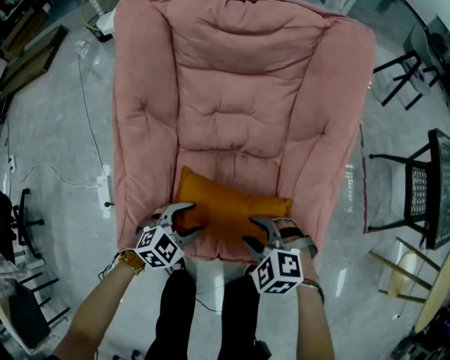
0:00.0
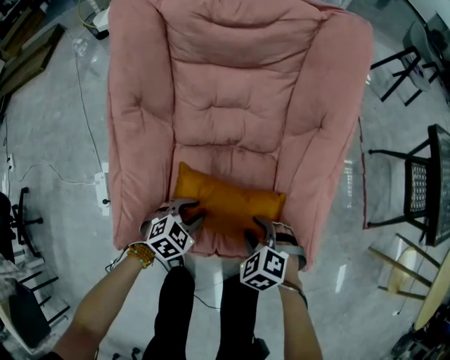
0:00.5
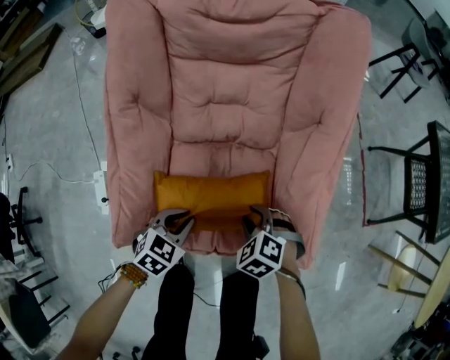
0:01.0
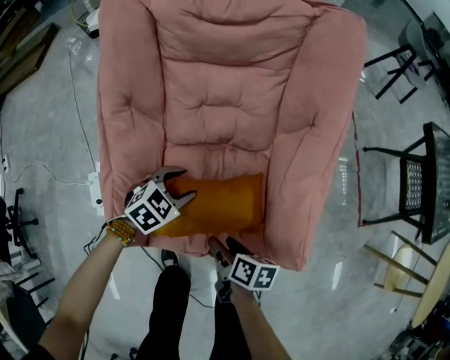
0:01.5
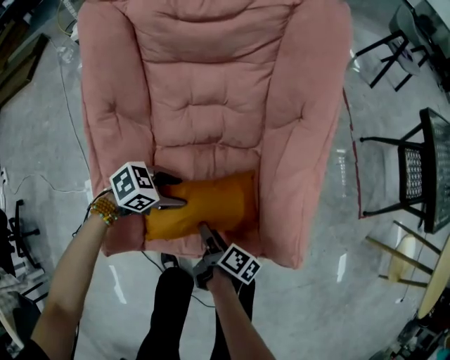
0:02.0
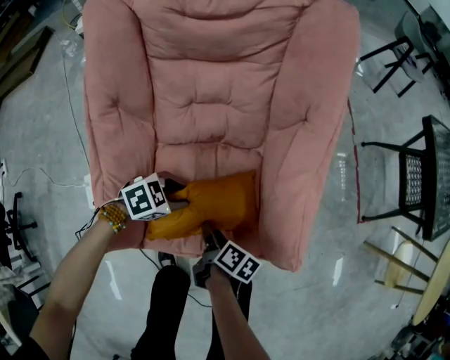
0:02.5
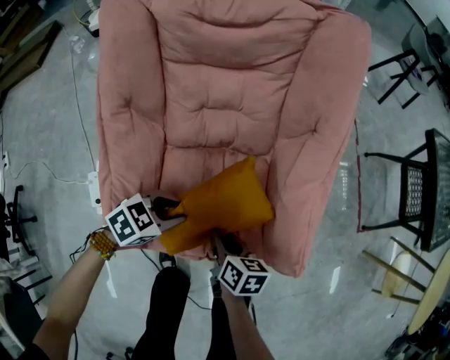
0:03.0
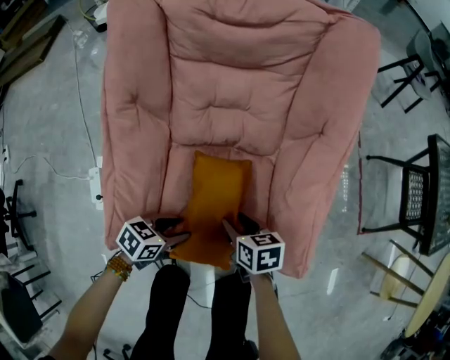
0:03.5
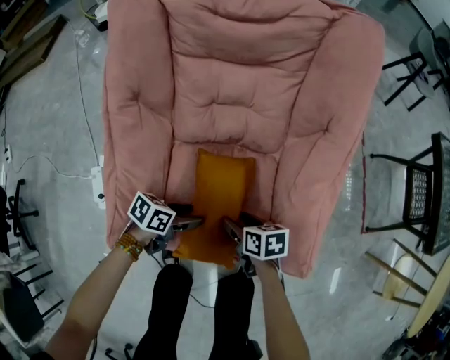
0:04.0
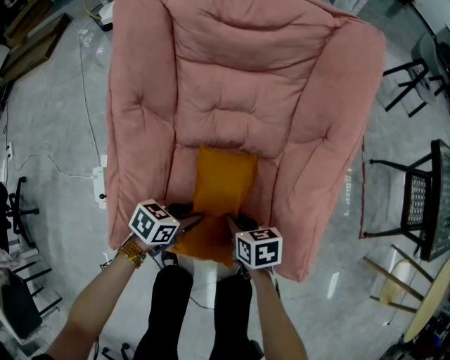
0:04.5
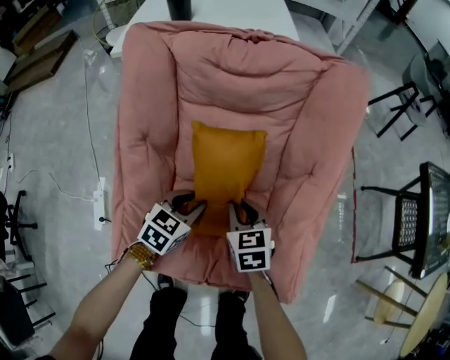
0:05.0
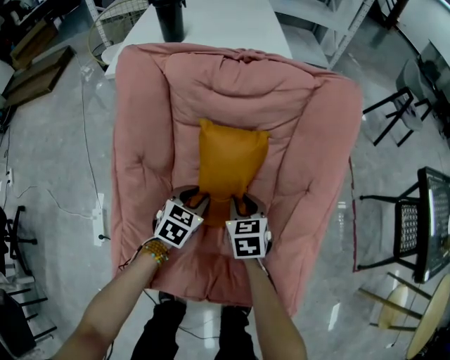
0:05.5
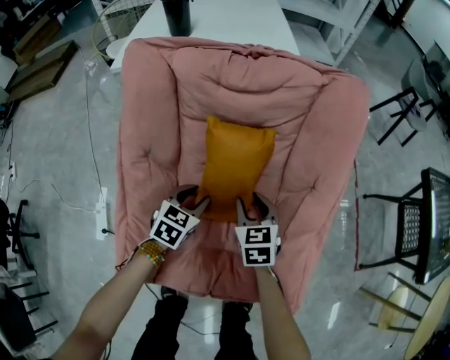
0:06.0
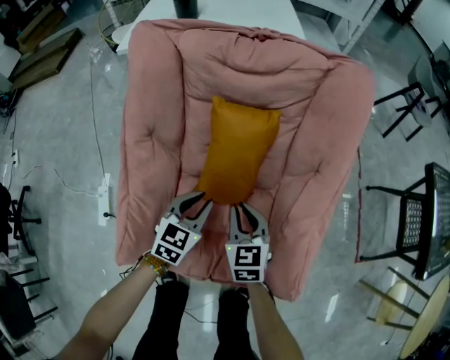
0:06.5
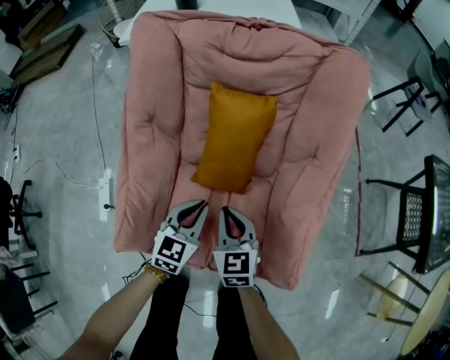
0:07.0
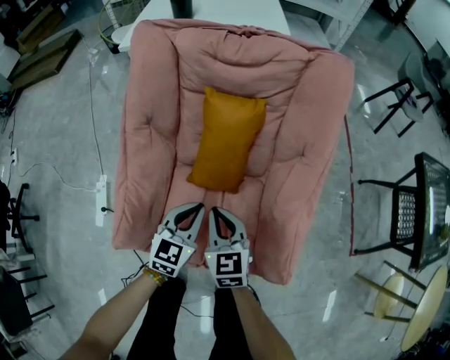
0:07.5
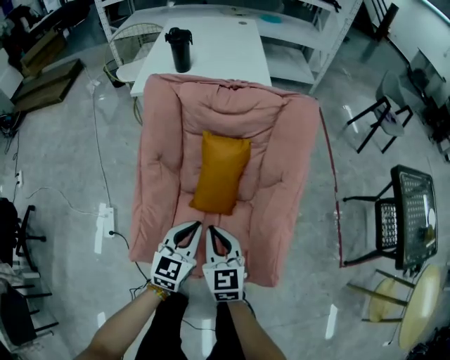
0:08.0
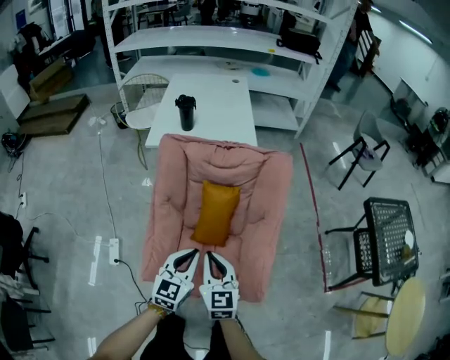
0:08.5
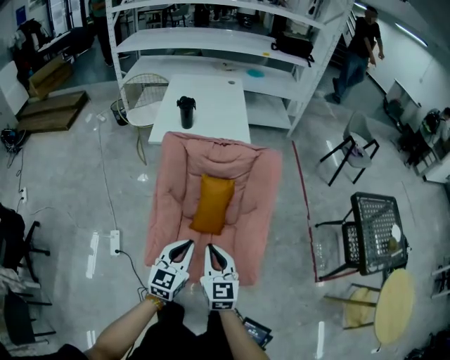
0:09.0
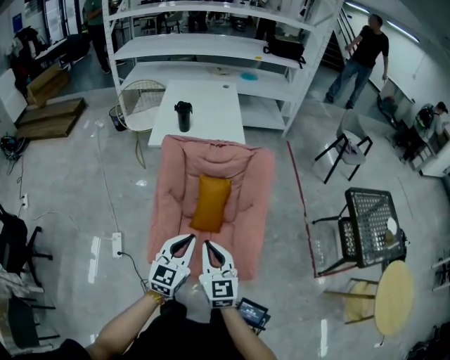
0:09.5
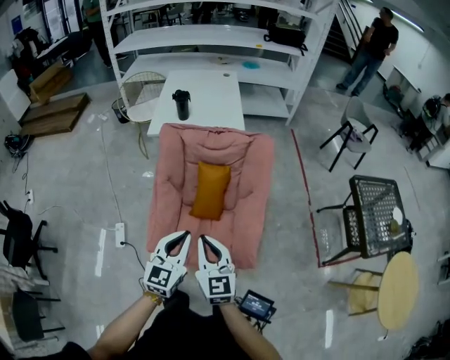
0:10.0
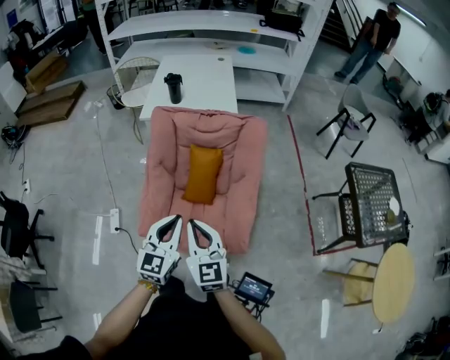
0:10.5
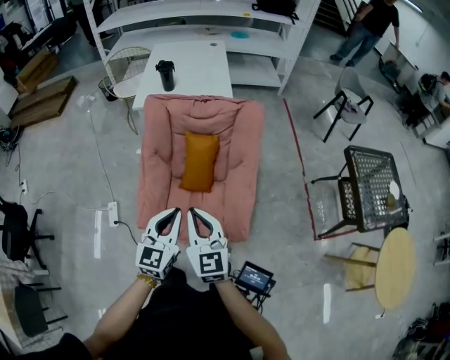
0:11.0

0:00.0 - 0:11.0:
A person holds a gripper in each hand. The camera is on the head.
0:00.0 - 0:02.0: The left gripper changes place by about 5 cm, turns by some 30 degrees, and closes and opens again; the right gripper is displaced downward by roughly 10 cm, and rotates around the line of its fingers by about 130 degrees, clockwise from behind.
0:02.0 - 0:03.5: The left gripper ends up some 10 cm from where it was, and changes its angle by approximately 30 degrees, while the right gripper changes place by approximately 5 cm, rolls counterclockwise, seen from behind, by some 60 degrees, and closes up.
0:03.5 - 0:05.5: The left gripper ends up roughly 30 cm from where it was, and changes its angle by some 40 degrees. The right gripper shifts by approximately 25 cm, and turns by approximately 30 degrees.
0:05.5 - 0:07.5: Both grippers move backward and upward, some 20 cm. The left gripper swivels some 20 degrees, and closes its fingers.
0:07.5 - 0:09.0: Both grippers move upward, some 40 cm.
0:09.0 - 0:11.0: Both grippers travel together backward, about 5 cm.

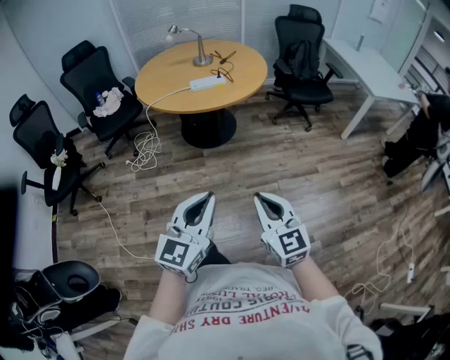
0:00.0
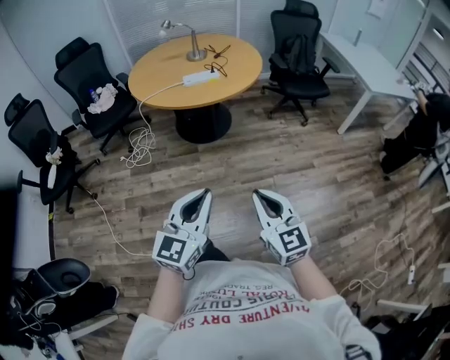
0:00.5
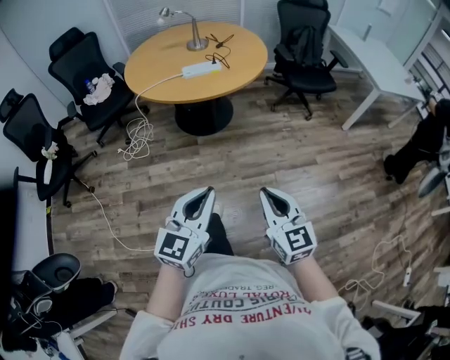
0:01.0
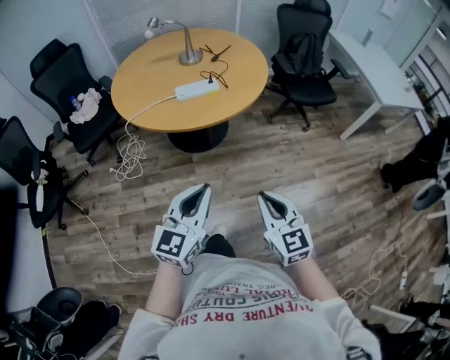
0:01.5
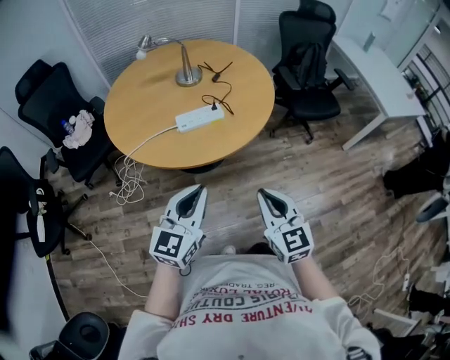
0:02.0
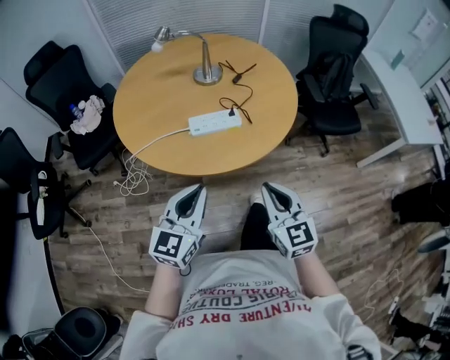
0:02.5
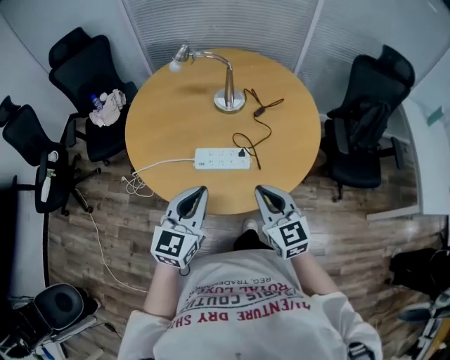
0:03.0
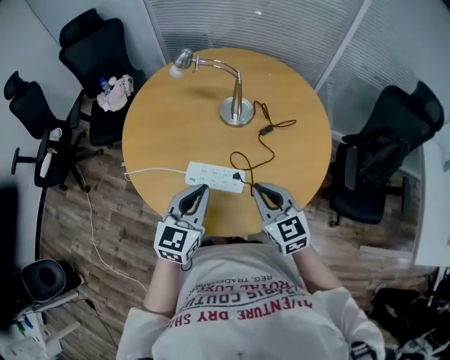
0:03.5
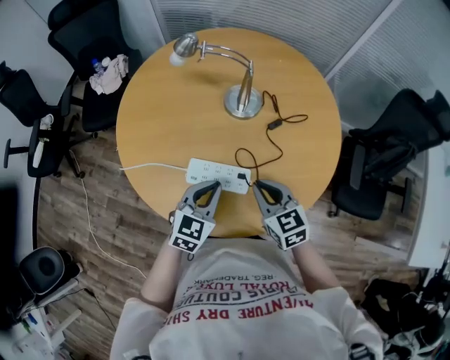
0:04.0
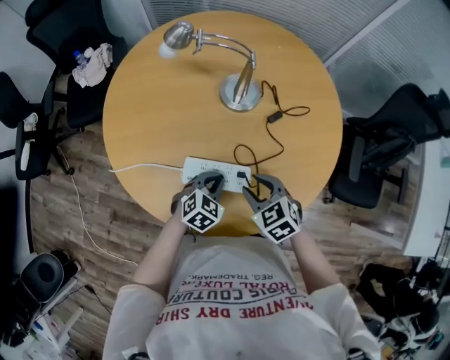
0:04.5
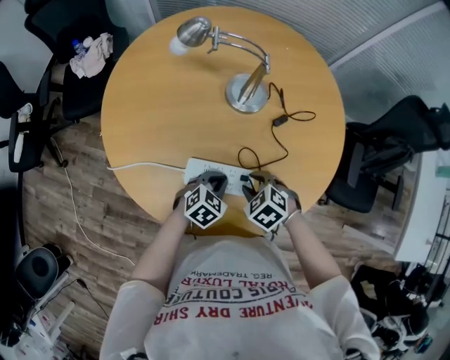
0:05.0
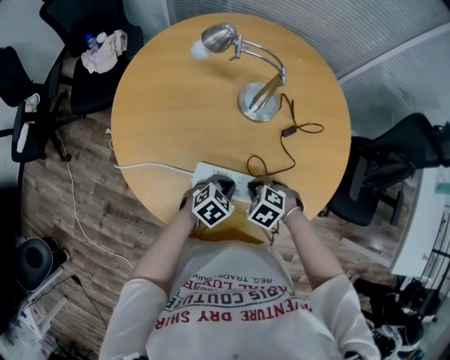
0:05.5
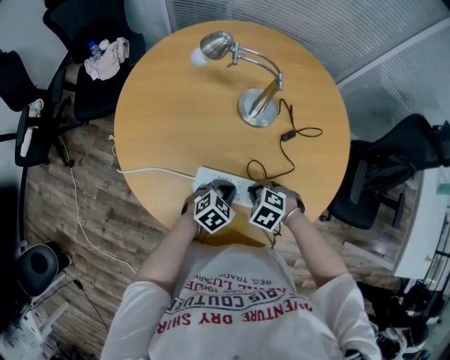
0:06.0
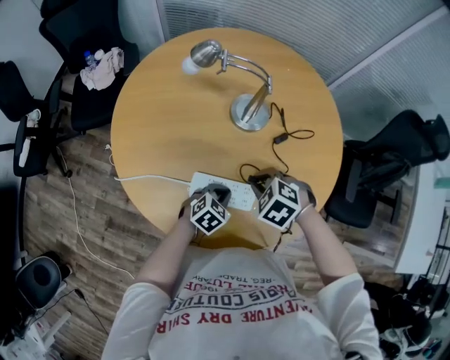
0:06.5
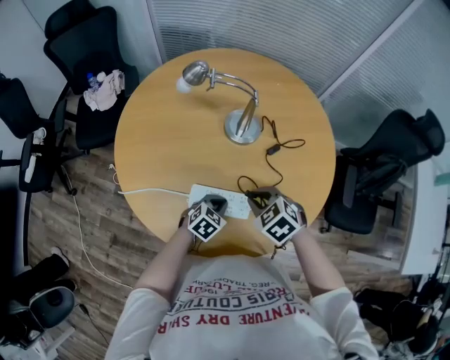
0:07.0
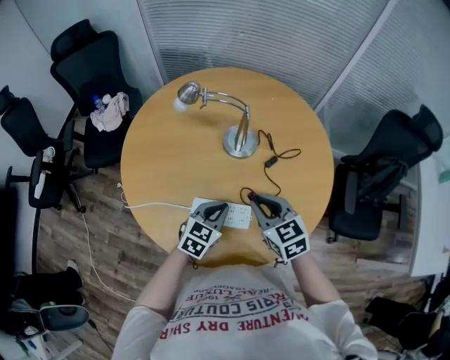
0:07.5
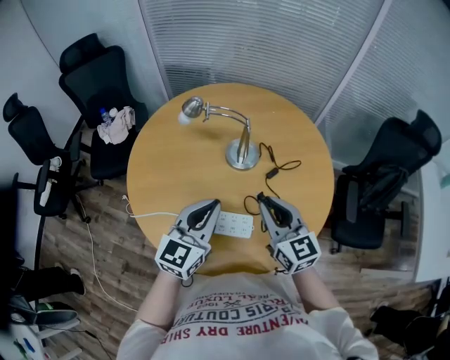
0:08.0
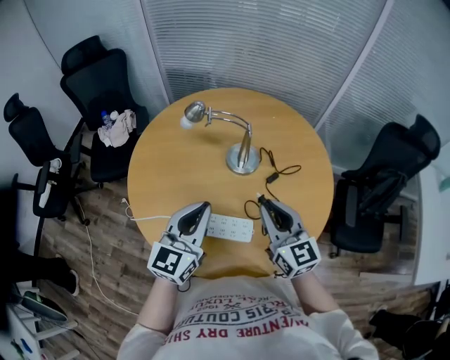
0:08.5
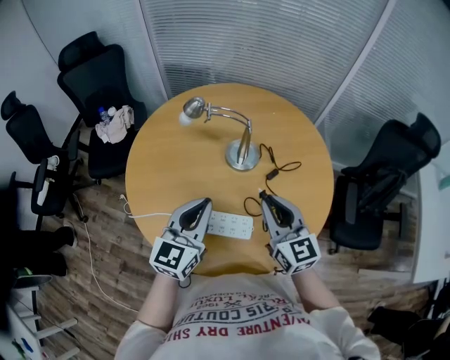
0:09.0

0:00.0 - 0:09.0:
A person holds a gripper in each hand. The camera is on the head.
0:00.0 - 0:02.0: Both grippers travel together forward, about 40 cm.
0:02.0 - 0:04.5: The left gripper moves some 50 cm, and points its fingers about 40 degrees further downward, while the right gripper ends up approximately 50 cm from where it was, tips its fingers downward by some 40 degrees, and opens.
0:04.5 - 0:07.0: The right gripper travels downward and back again, approximately 10 cm each way, and closes its fingers.
0:07.0 - 0:09.0: The left gripper moves upward, about 30 cm, and tips its fingers upward by approximately 40 degrees. Meanwhile the right gripper shifts about 15 cm upward, and tips its fingers upward by about 50 degrees.

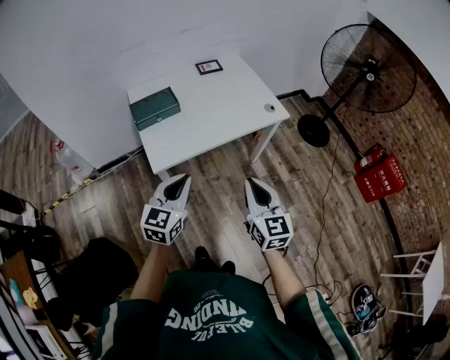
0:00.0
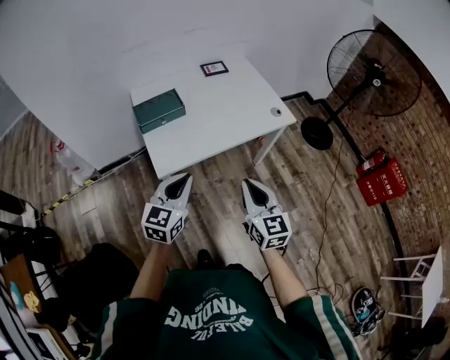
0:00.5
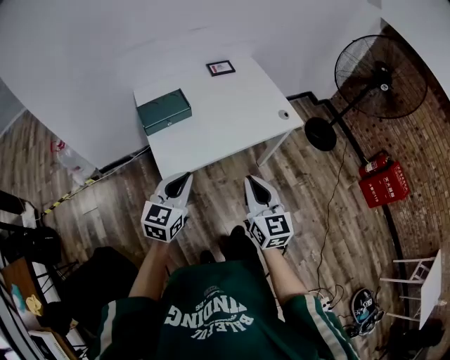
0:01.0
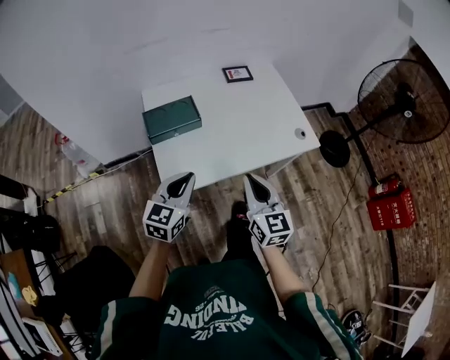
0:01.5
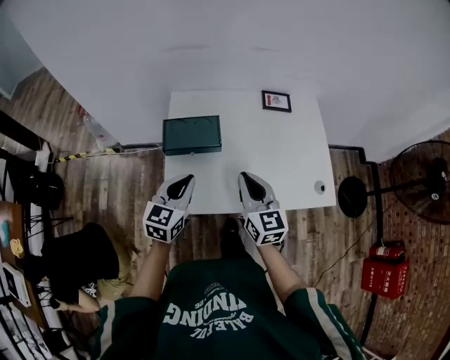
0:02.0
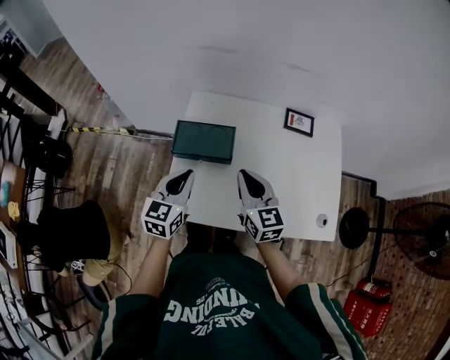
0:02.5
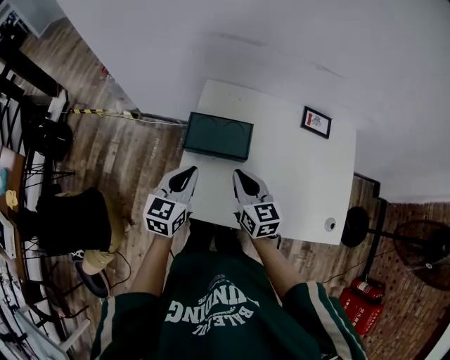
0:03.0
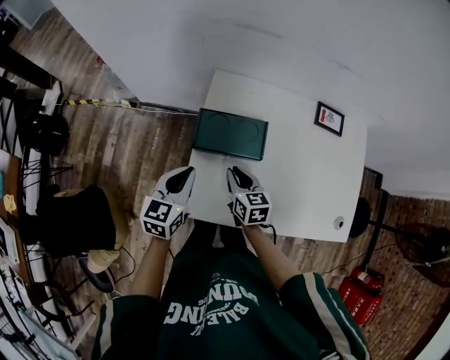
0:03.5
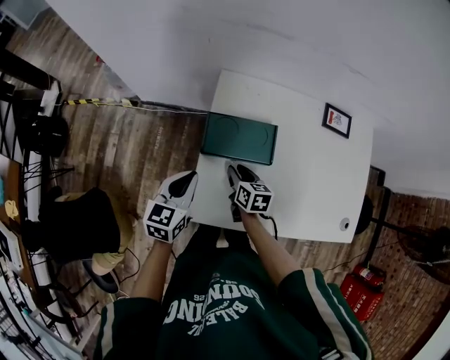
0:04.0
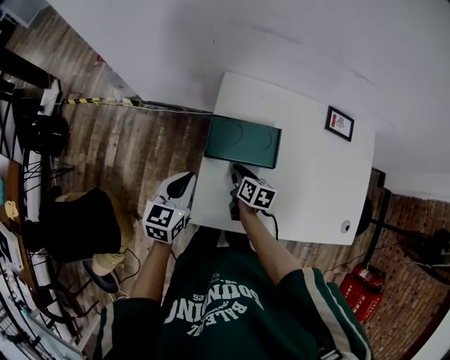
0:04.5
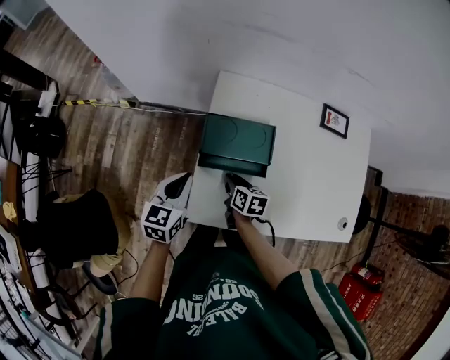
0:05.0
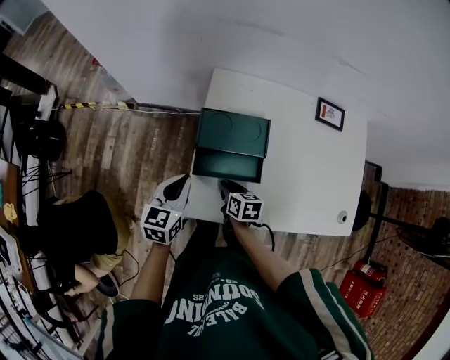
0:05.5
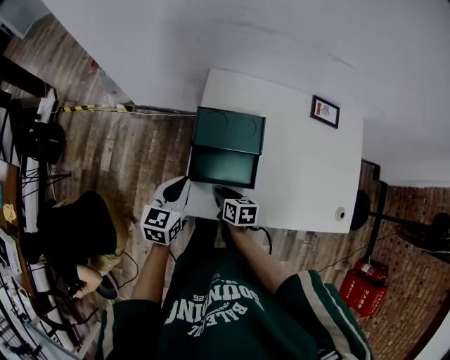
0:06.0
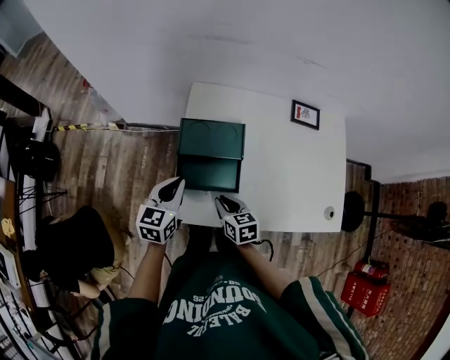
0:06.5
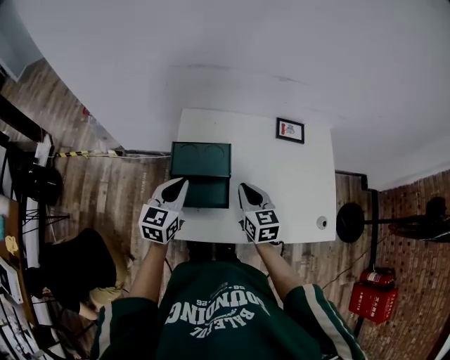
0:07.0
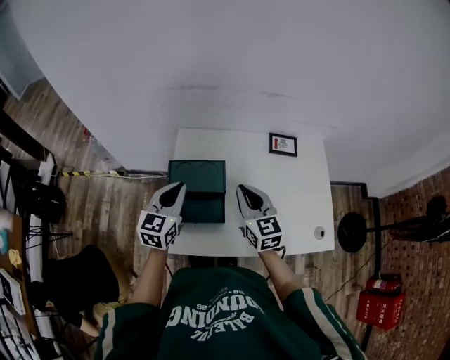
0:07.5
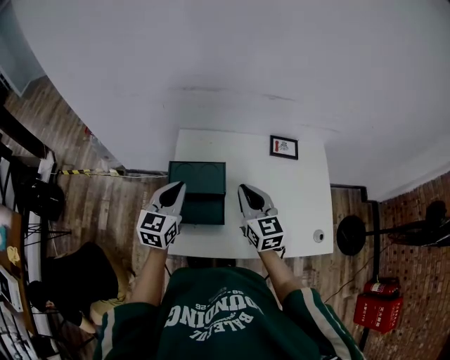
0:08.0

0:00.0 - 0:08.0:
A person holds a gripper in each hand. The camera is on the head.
0:00.0 - 0:02.0: Both grippers travel together forward, roughly 30 cm. The right gripper changes its angle by approximately 30 degrees; the left gripper changes its angle by some 20 degrees.
0:02.0 - 0:04.0: The right gripper heads downward, to the left and forward, covering roughly 30 cm, points its fingers approximately 30 degrees further downward, and opens its fingers, while the left gripper travels to the left, forward and downward by roughly 20 cm.
0:04.0 - 0:06.0: The right gripper moves backward, some 10 cm.
0:06.0 - 0:08.0: The right gripper travels upward and to the right by roughly 30 cm, and points its fingers some 30 degrees further upward; the left gripper heads upward, to the right and forward, covering some 15 cm.
